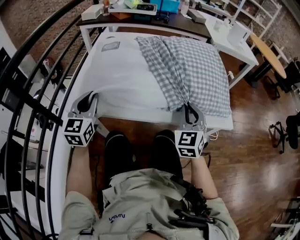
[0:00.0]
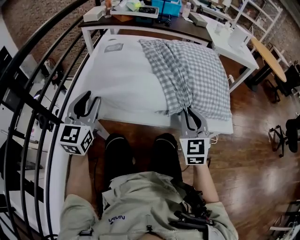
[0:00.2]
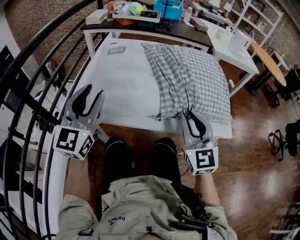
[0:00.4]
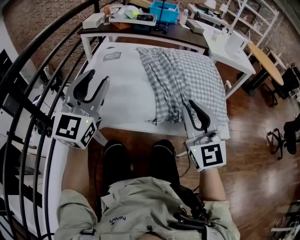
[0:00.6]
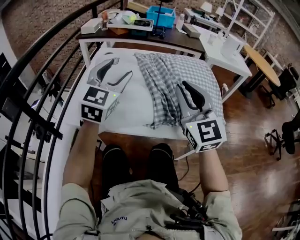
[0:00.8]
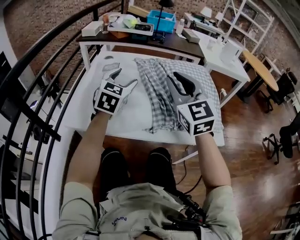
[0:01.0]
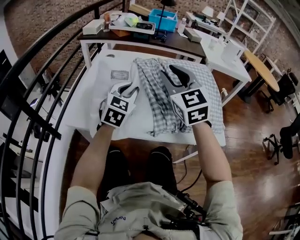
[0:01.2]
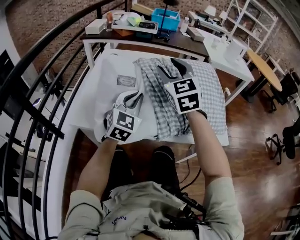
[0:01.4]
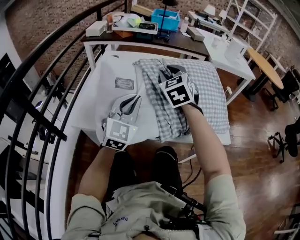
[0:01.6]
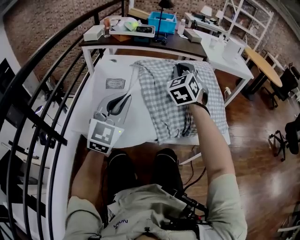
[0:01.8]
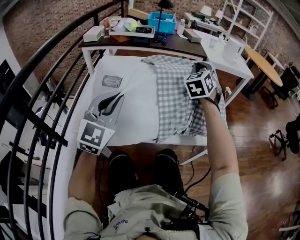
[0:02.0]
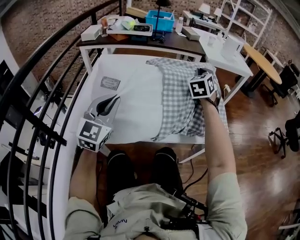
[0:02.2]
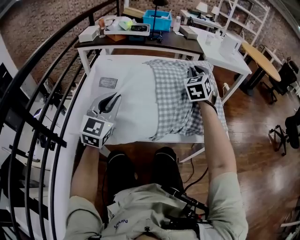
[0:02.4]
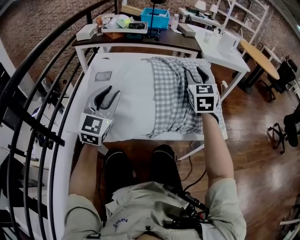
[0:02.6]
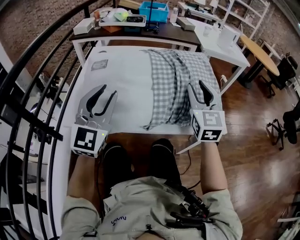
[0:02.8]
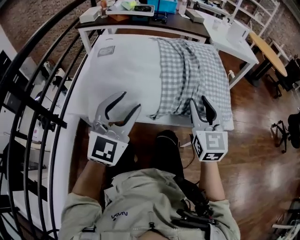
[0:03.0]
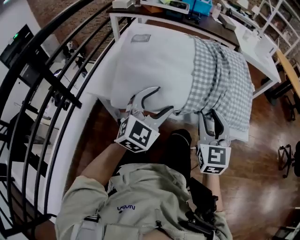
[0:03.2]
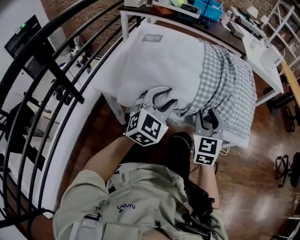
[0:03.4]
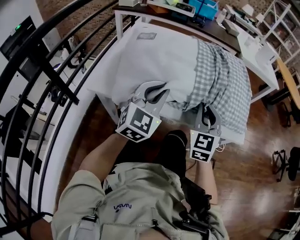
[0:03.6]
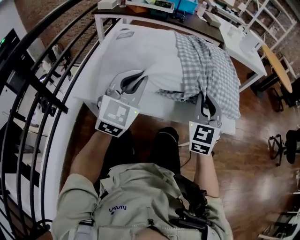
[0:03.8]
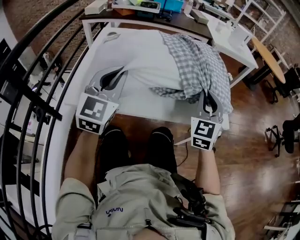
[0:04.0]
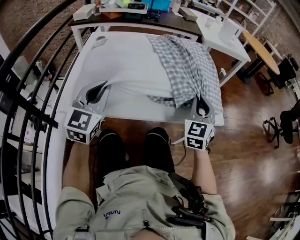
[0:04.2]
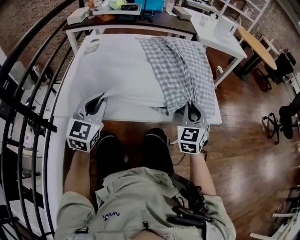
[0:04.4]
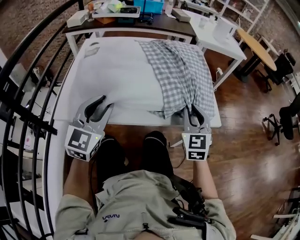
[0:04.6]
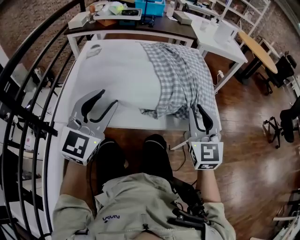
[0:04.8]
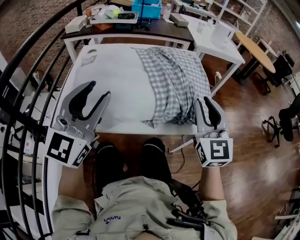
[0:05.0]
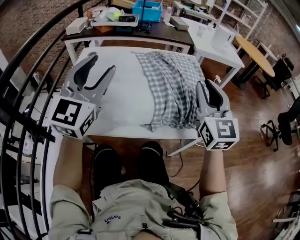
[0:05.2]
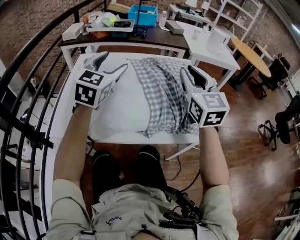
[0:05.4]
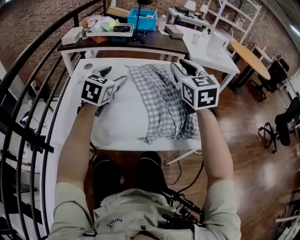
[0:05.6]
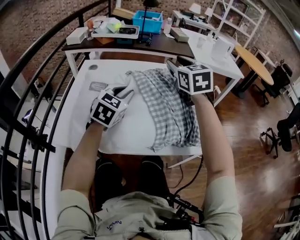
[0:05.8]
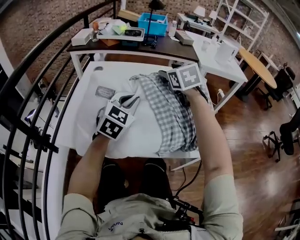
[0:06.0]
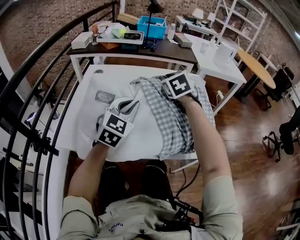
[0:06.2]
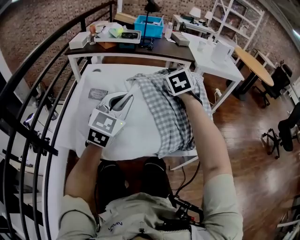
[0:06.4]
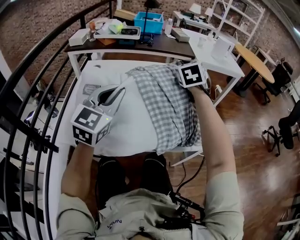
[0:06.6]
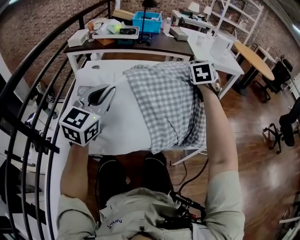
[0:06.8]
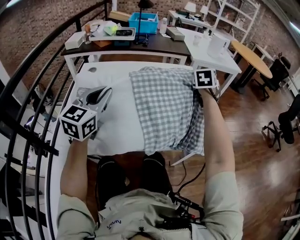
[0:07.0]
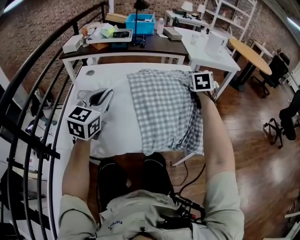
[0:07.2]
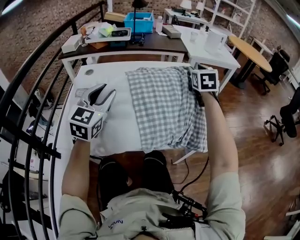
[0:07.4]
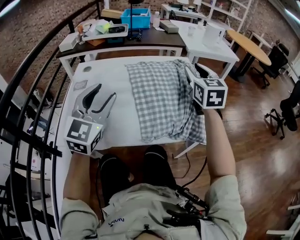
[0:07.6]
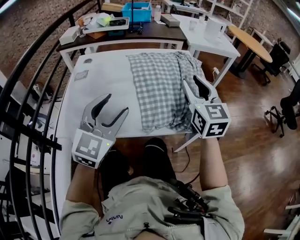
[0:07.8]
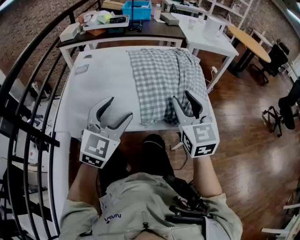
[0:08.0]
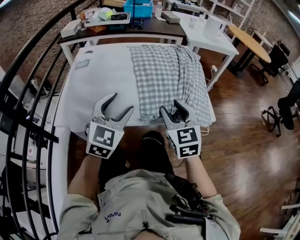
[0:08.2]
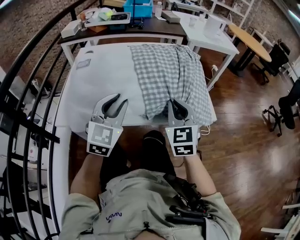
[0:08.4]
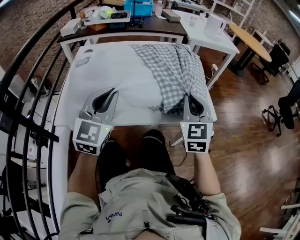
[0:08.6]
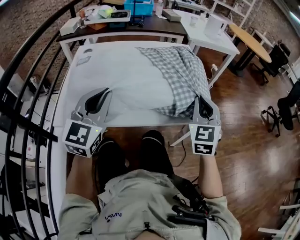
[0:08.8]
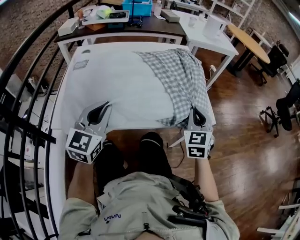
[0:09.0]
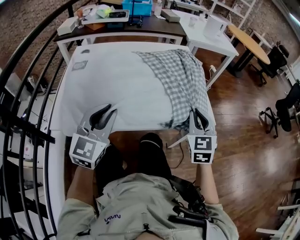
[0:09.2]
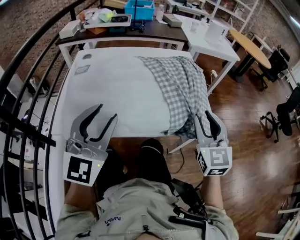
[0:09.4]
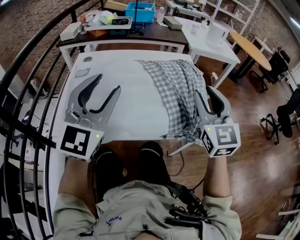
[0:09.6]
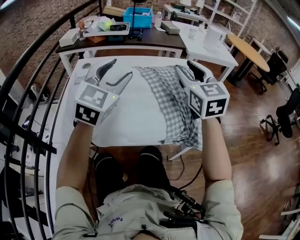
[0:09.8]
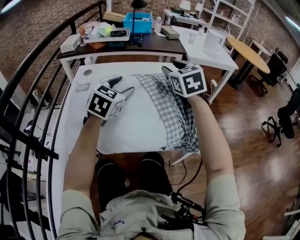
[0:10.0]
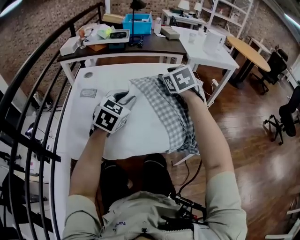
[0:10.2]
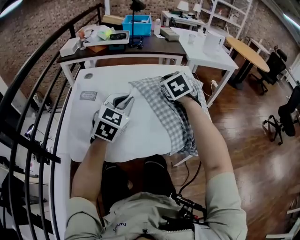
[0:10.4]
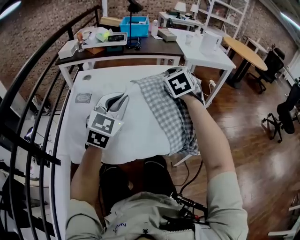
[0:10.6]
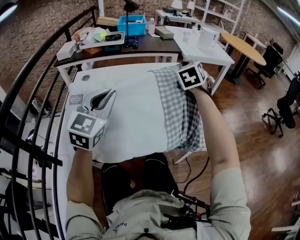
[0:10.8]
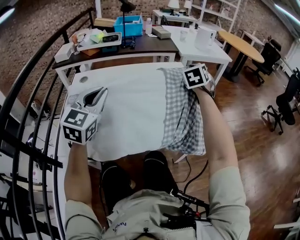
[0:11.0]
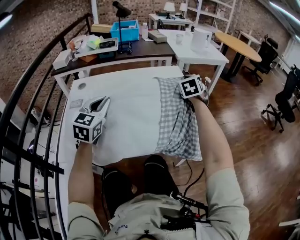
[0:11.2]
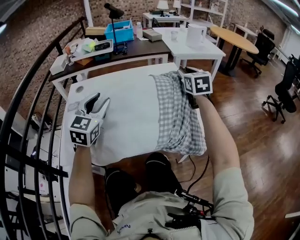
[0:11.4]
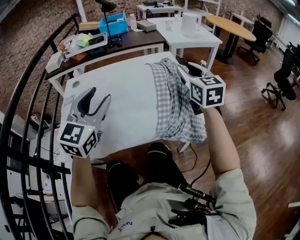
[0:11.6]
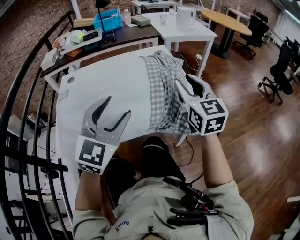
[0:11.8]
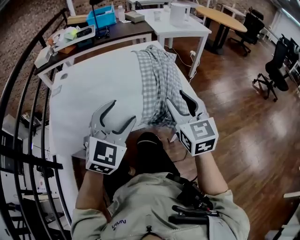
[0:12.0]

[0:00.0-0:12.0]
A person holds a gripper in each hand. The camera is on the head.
0:00.0 to 0:01.6: The left gripper heads to the right and upward, covering some 15 cm, moves approximately 15 cm forward and comes back, turns by about 20 degrees, and opens and closes again, while the right gripper travels forward, upward and to the left by some 25 cm, and opens its fingers.
0:01.6 to 0:03.0: The left gripper goes roughly 10 cm backward, and opens its fingers, while the right gripper shifts approximately 25 cm to the right and backward, turns by approximately 30 degrees, and closes, then reopens.
0:03.0 to 0:04.4: The right gripper travels downward by about 10 cm, turns by approximately 30 degrees, and closes its fingers. Meanwhile the left gripper heads to the left and downward, covering about 10 cm, and closes.
0:04.4 to 0:06.0: The left gripper heads forward and to the right, covering roughly 15 cm, and opens and closes again. Meanwhile the right gripper is displaced forward, to the left and upward by roughly 30 cm, changes its angle by about 30 degrees, and opens its fingers.
0:06.0 to 0:07.6: The left gripper goes forward and backward, approximately 10 cm each way, reversing 2 times, and opens. Meanwhile the right gripper travels to the right by about 15 cm, rotates approximately 30 degrees, and closes and opens again.
0:07.6 to 0:09.0: The left gripper moves up and down over approximately 10 cm, changing direction 2 times, and closes up, while the right gripper shifts about 20 cm backward and downward, rotates roughly 20 degrees, and closes up.
0:09.0 to 0:10.4: The left gripper is displaced forward by some 15 cm, and opens, then closes again. Meanwhile the right gripper is displaced forward and to the left by about 25 cm, changes its angle by roughly 20 degrees, and opens, then closes again.
0:10.4 to 0:12.0: The right gripper moves backward and to the right, roughly 30 cm, rotates approximately 30 degrees, and opens its fingers, while the left gripper travels backward and to the right by about 20 cm, and opens its fingers.

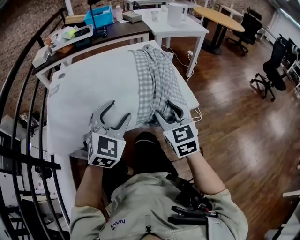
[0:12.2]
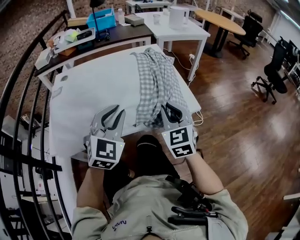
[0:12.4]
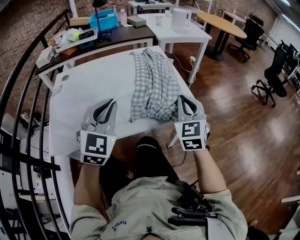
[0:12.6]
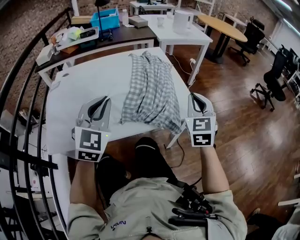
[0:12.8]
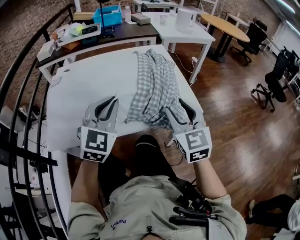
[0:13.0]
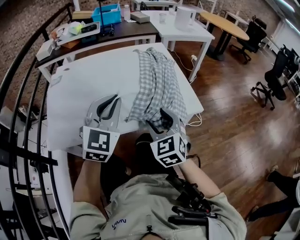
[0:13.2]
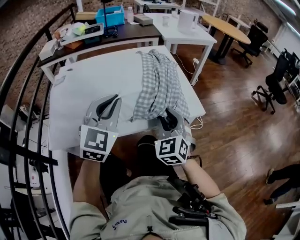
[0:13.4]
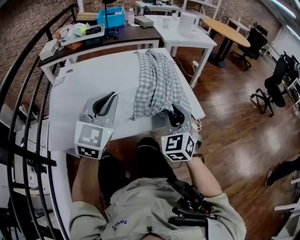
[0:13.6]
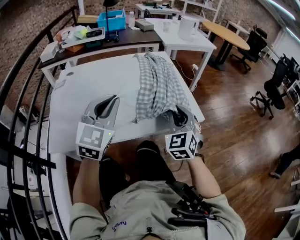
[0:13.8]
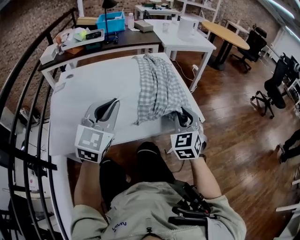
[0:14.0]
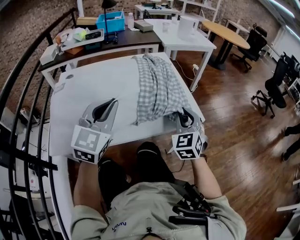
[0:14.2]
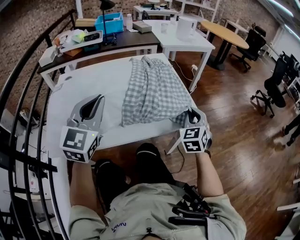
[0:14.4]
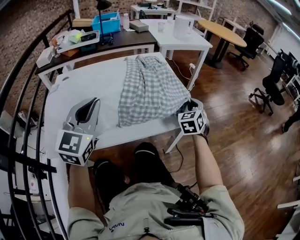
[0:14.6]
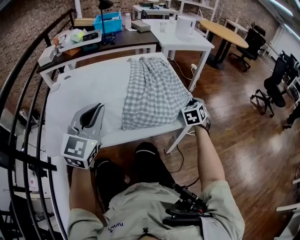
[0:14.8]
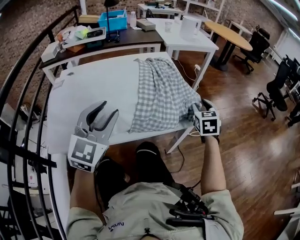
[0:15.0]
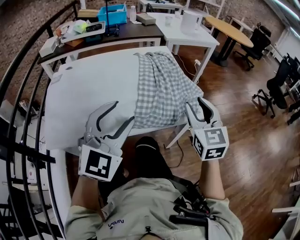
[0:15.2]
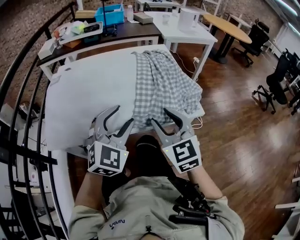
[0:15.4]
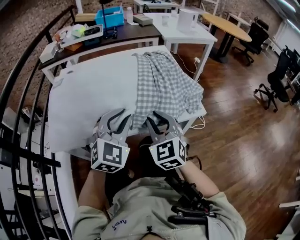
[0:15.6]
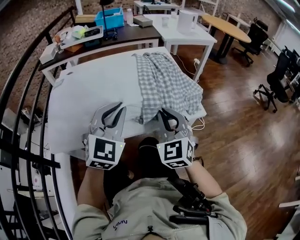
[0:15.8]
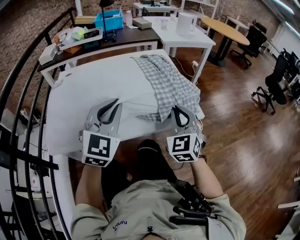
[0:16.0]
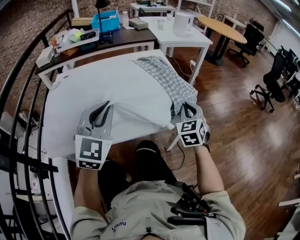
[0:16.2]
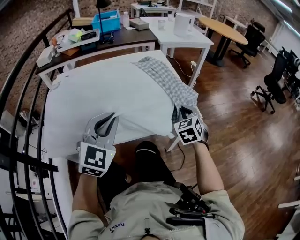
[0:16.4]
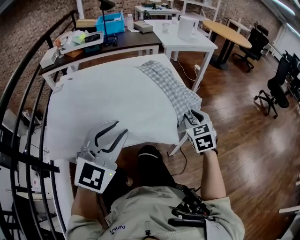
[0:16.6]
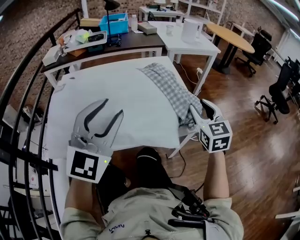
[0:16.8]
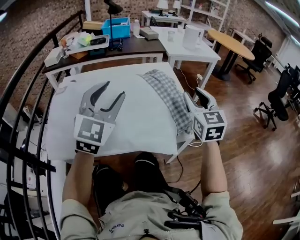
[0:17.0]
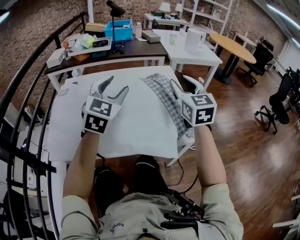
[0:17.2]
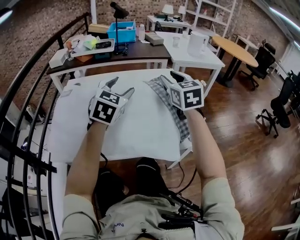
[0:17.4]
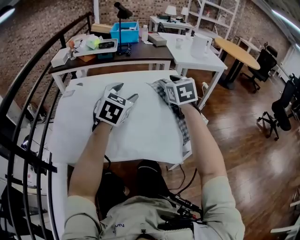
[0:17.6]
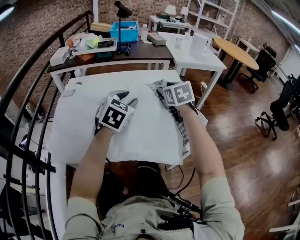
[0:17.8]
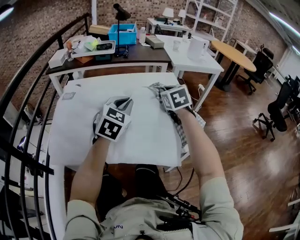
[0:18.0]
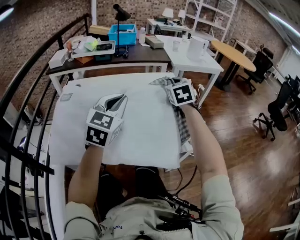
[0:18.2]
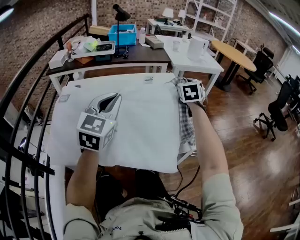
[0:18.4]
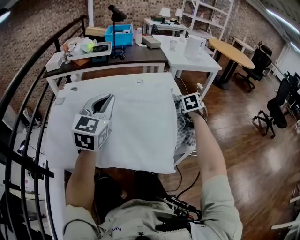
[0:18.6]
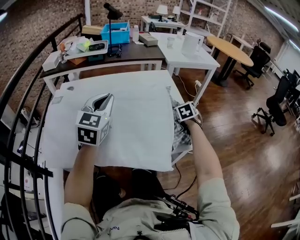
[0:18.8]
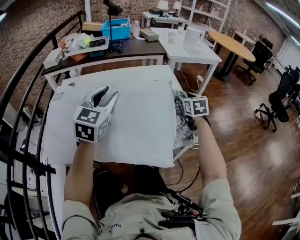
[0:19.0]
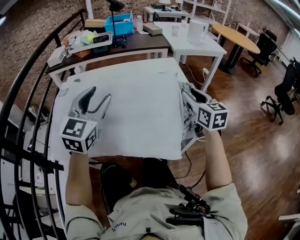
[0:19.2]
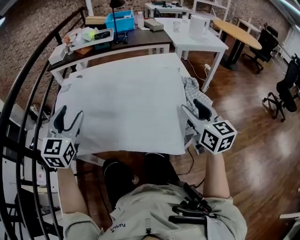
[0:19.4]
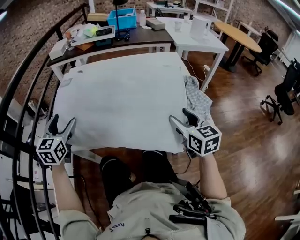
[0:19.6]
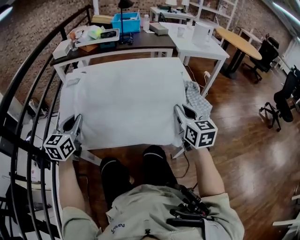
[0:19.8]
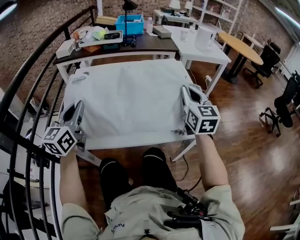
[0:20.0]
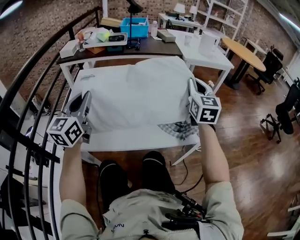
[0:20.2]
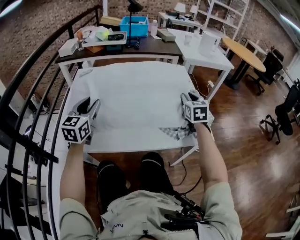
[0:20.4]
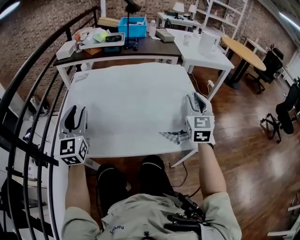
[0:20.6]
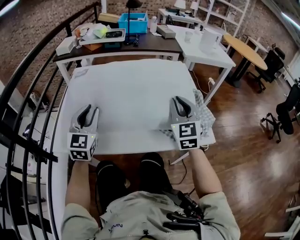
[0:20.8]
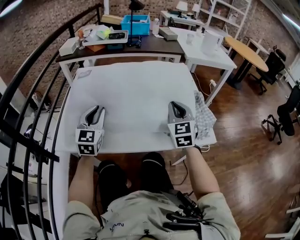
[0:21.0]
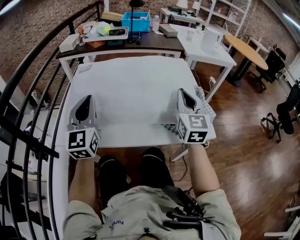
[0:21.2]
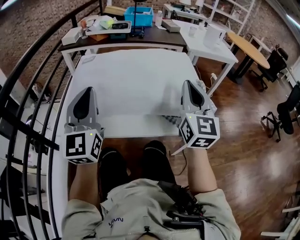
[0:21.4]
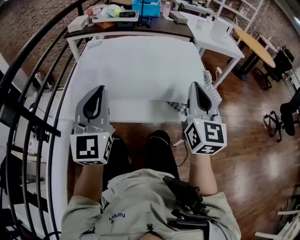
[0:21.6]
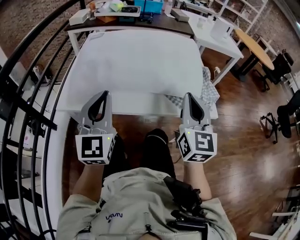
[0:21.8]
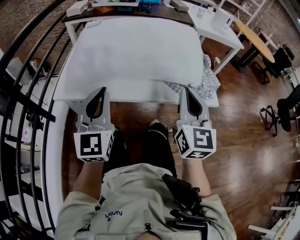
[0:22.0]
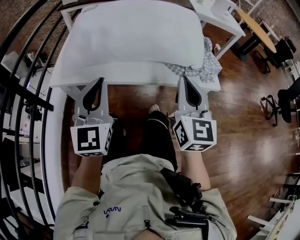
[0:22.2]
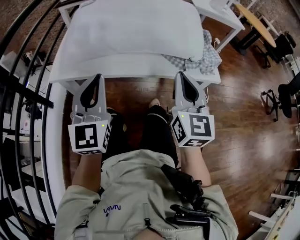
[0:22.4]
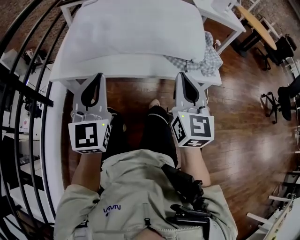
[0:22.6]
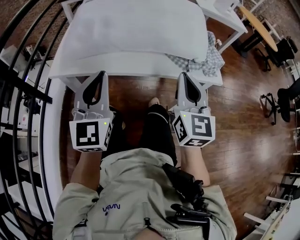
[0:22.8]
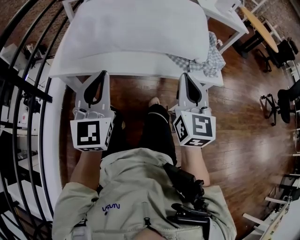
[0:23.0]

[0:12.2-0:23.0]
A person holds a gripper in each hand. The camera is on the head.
0:12.2 to 0:13.8: The right gripper swings left and right, some 15 cm each way, with 2 reversals, rotates roughly 30 degrees, and closes its fingers. Meanwhile the left gripper goes some 10 cm upward and to the left, and closes its fingers.
0:13.8 to 0:15.2: The left gripper moves to the right and backward, roughly 10 cm, and opens up; the right gripper heads upward and to the right, covering roughly 10 cm, moves about 15 cm forward and comes back, turns by about 20 degrees, and opens.
0:15.2 to 0:16.8: The right gripper shifts approximately 5 cm forward, travels to the left and back again, some 15 cm each way, and closes and opens again; the left gripper is displaced upward by approximately 5 cm, and closes and opens again.
0:16.8 to 0:18.4: The left gripper goes some 10 cm forward, and closes up. The right gripper goes some 20 cm forward, and closes its fingers.
0:18.4 to 0:20.0: The left gripper shifts by about 20 cm, turns by about 30 degrees, and opens, then closes once more; the right gripper swings up and down, about 20 cm each way, with 3 reversals, changes its angle by some 30 degrees, and opens, then closes once more.
0:20.0 to 0:21.4: The left gripper shifts about 10 cm to the right, upward and backward, swivels some 20 degrees, and opens, then closes again. The right gripper goes about 10 cm backward and upward, and opens and closes again.
0:21.4 to 0:23.0: Both grippers travel together backward and downward, some 15 cm.
